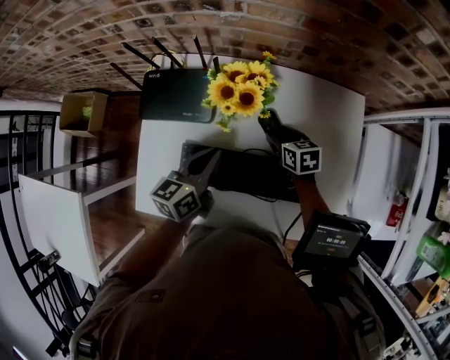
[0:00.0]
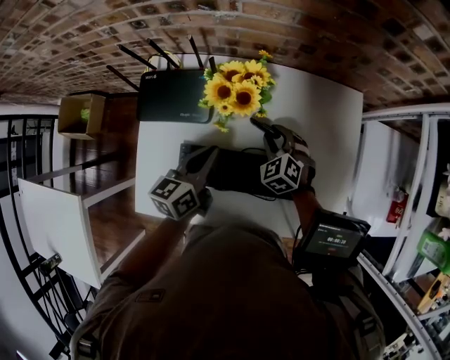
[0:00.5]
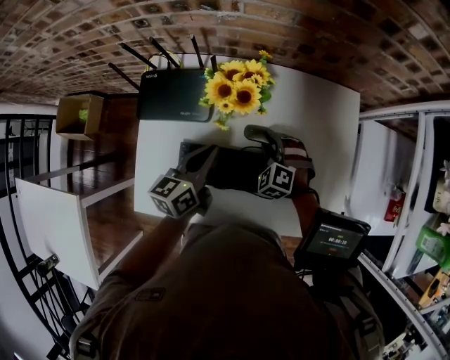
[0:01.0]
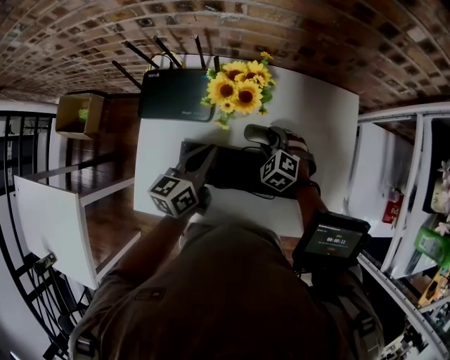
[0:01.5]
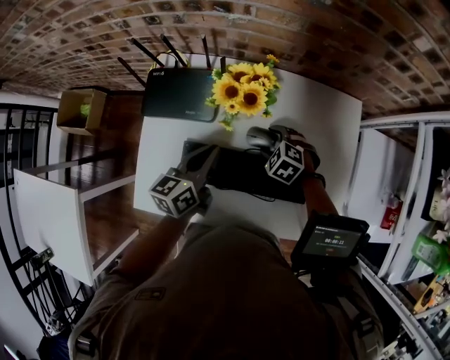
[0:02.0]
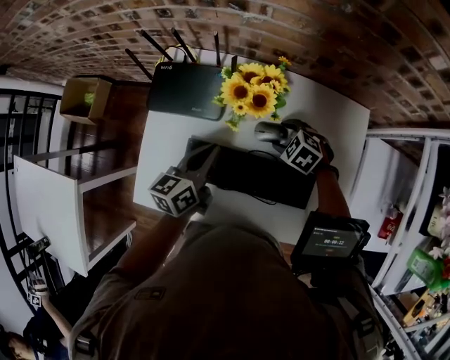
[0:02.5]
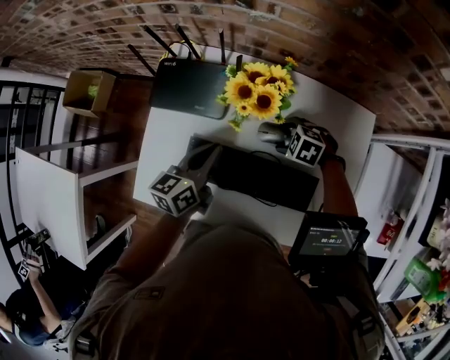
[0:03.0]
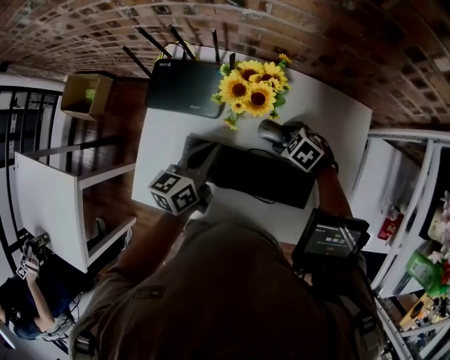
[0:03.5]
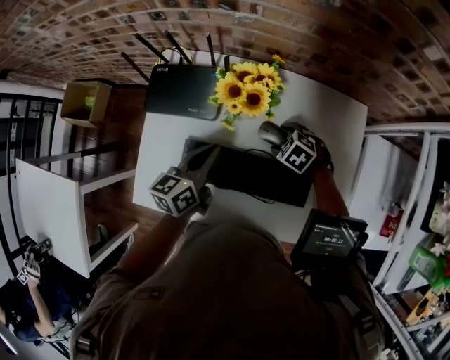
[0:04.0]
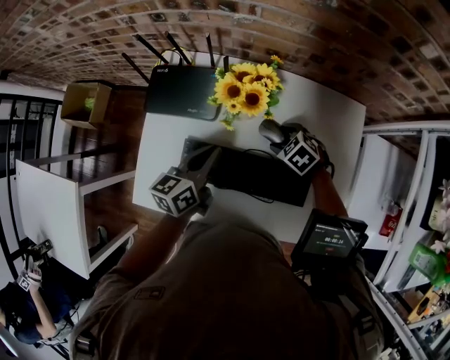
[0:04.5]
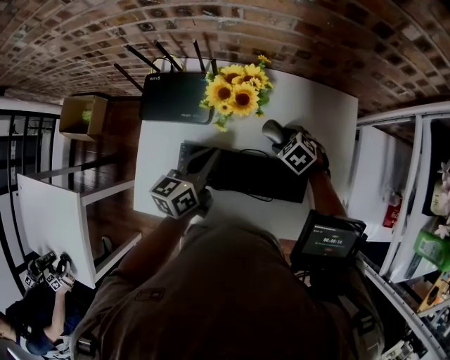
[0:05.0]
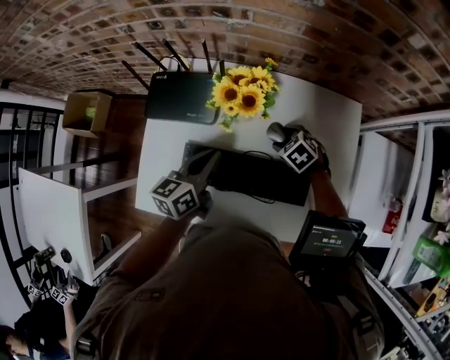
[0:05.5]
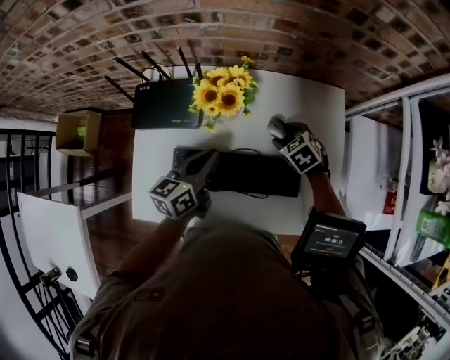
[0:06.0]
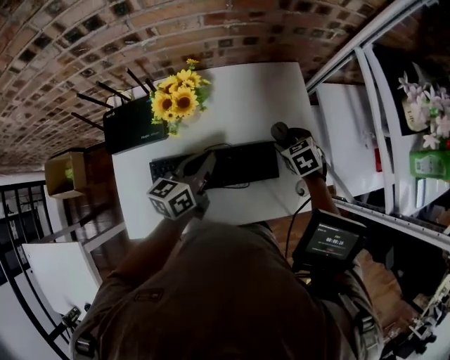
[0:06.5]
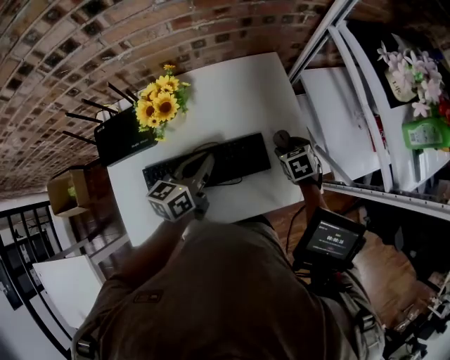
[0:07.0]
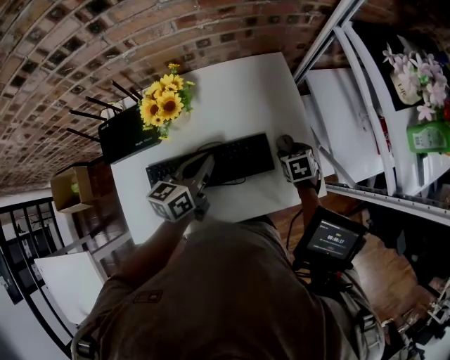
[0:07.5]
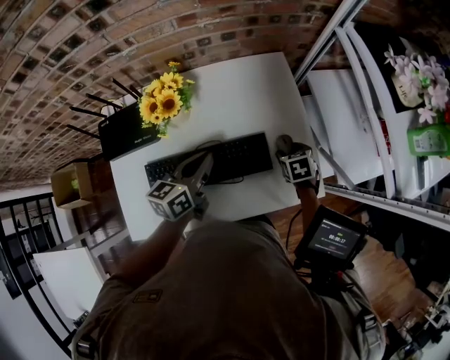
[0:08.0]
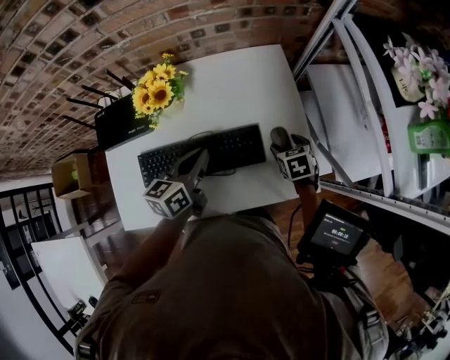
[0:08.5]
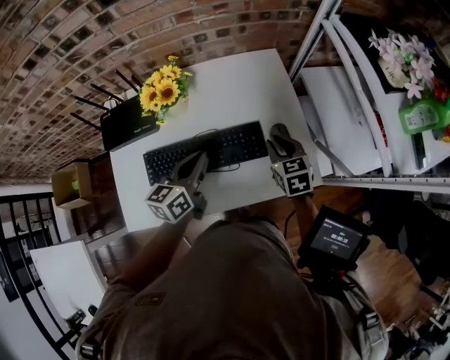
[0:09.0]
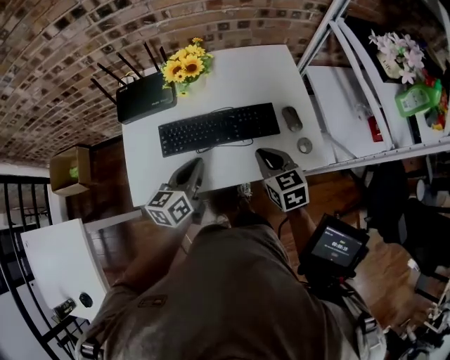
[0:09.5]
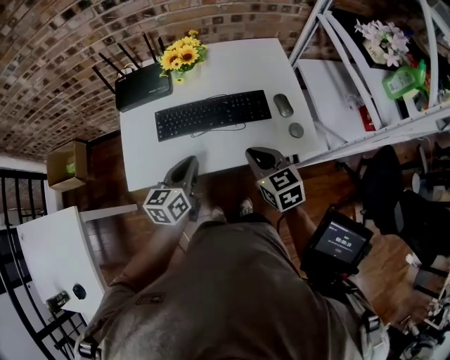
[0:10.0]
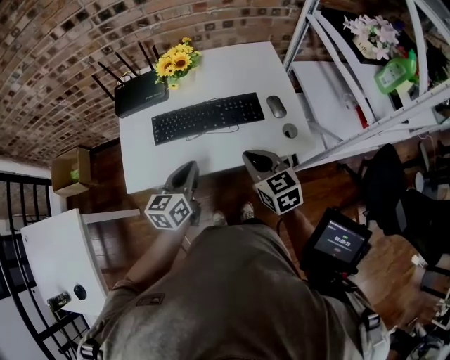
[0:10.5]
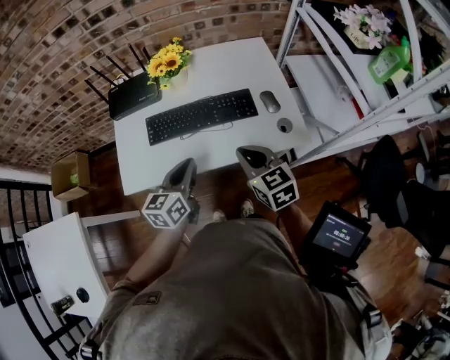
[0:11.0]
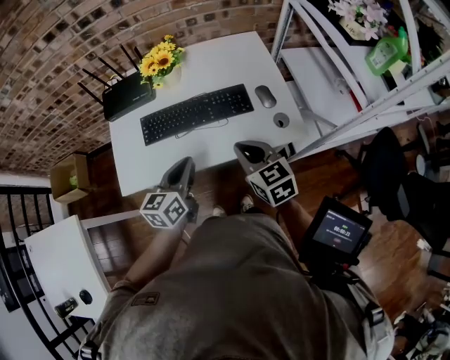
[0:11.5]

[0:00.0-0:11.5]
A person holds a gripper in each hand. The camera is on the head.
0:00.0 to 0:02.0: The right gripper changes place by roughly 5 cm, and rolls counterclockwise, seen from behind, by some 60 degrees.
0:02.0 to 0:04.0: The grippers make only small movements.
0:04.0 to 0:06.0: The right gripper heads to the right, covering some 5 cm, and turns by some 30 degrees.
0:06.0 to 0:07.5: The left gripper changes place by about 10 cm. The right gripper moves some 20 cm, and rotates approximately 40 degrees.
0:07.5 to 0:09.5: The right gripper goes approximately 25 cm backward, to the left and upward, angles its fingers upward, by roughly 30 degrees, and closes up. Meanwhile the left gripper moves backward, approximately 15 cm.
0:09.5 to 0:11.5: The grippers both shift backward by about 5 cm.

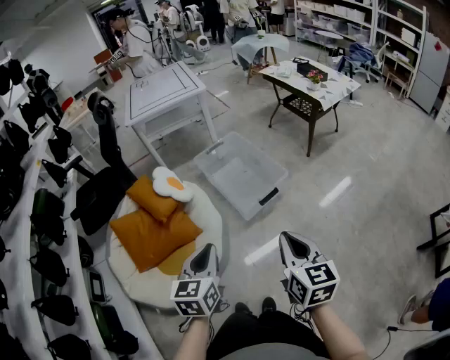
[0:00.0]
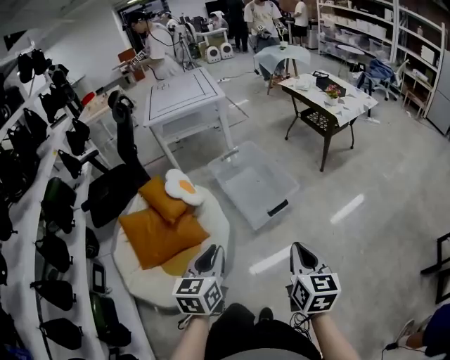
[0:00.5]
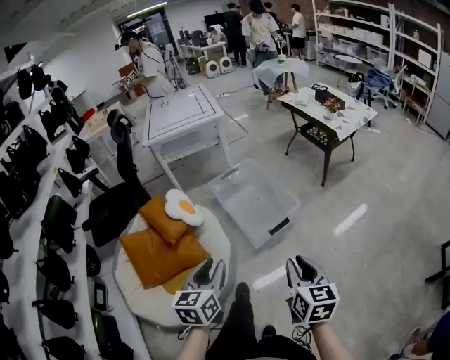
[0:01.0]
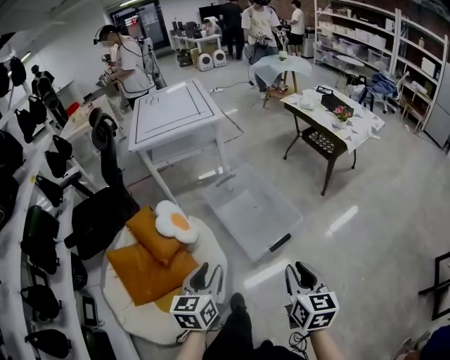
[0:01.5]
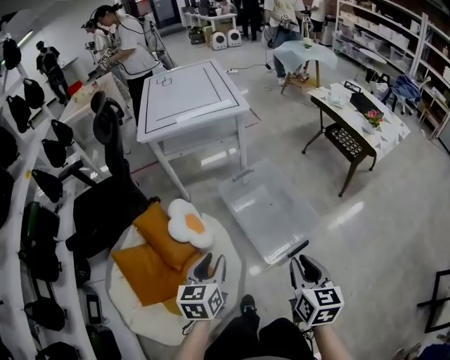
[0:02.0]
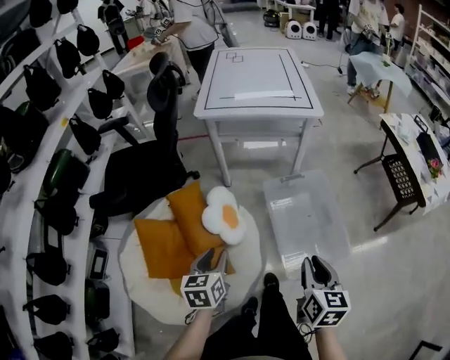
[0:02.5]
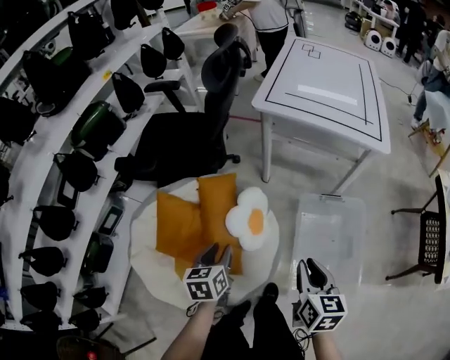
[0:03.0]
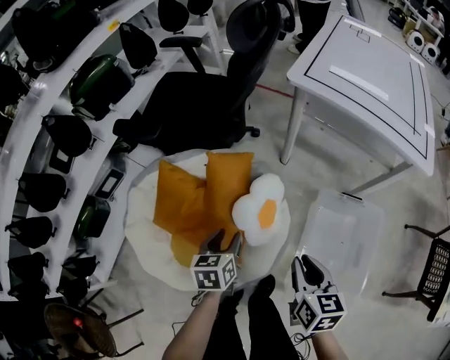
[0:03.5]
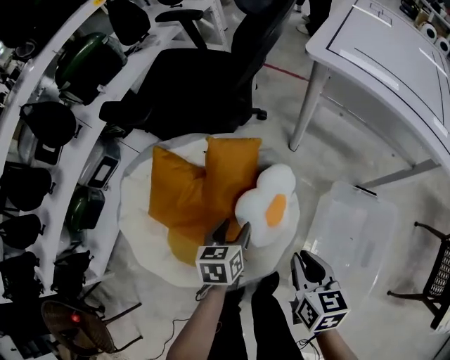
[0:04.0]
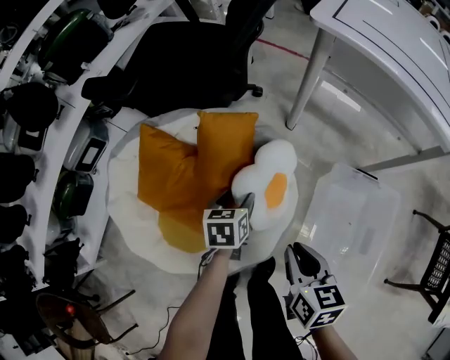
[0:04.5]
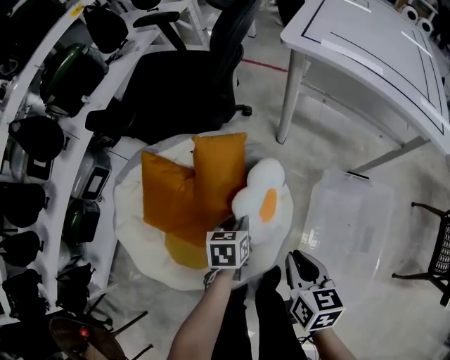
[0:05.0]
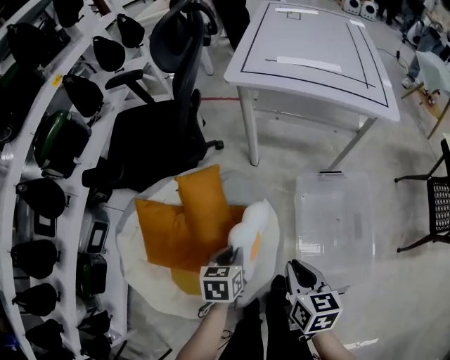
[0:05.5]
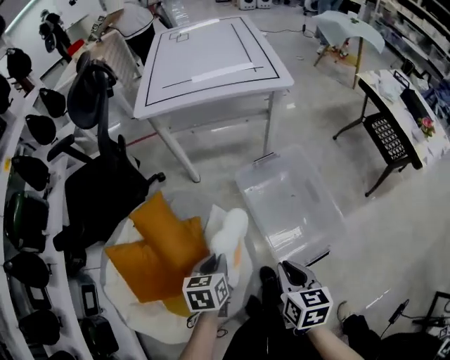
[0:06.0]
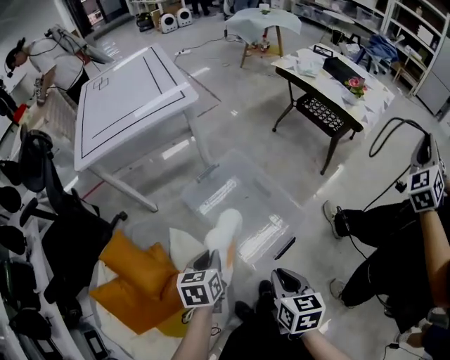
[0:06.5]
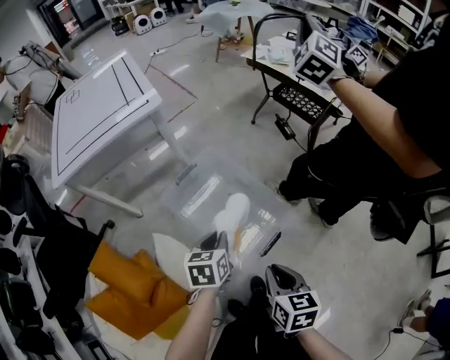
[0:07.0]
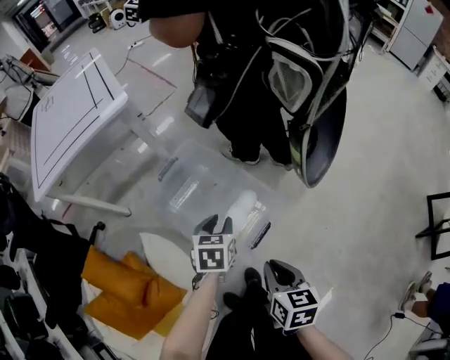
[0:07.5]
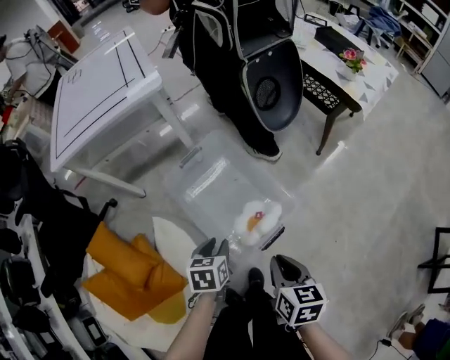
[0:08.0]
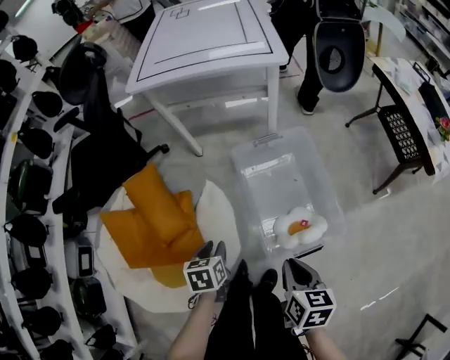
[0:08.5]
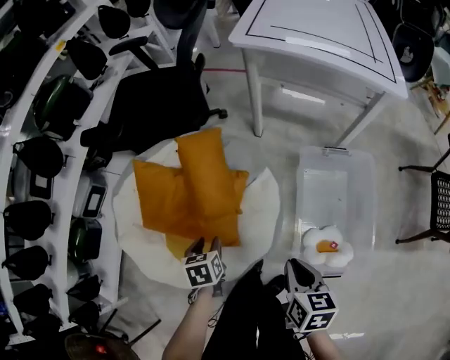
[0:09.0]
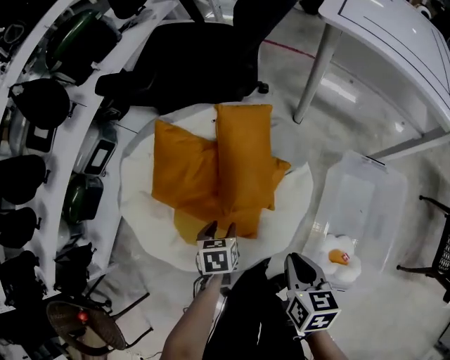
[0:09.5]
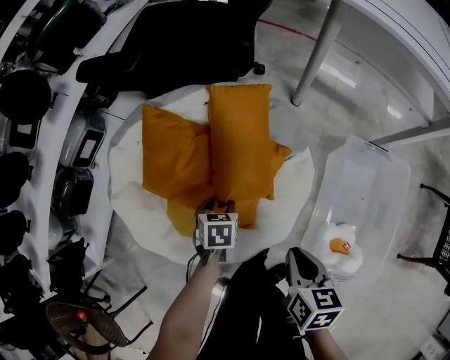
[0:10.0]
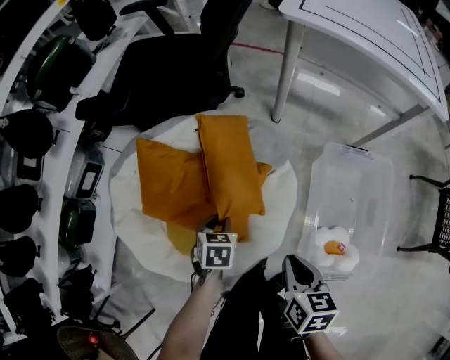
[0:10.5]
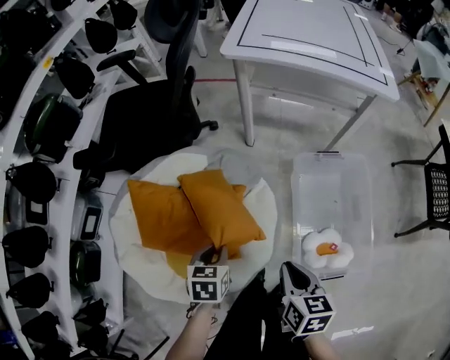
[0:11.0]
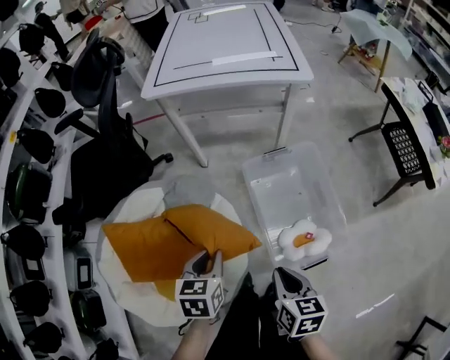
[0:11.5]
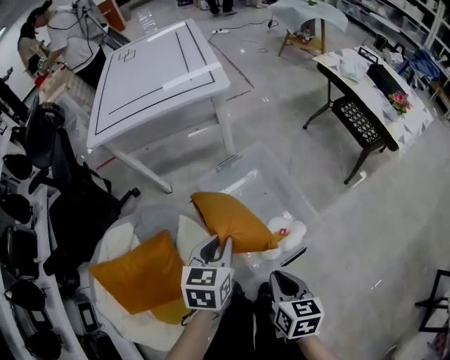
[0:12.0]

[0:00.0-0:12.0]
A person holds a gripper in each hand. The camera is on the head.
0:00.0 to 0:02.0: The two grippers go approximately 35 cm forward. The left gripper opens.
0:02.0 to 0:04.0: The left gripper ends up roughly 40 cm from where it was, and turns by roughly 50 degrees. Meanwhile the right gripper changes place by roughly 50 cm, and turns by roughly 60 degrees.
0:04.0 to 0:06.0: The right gripper moves some 25 cm, and turns by about 40 degrees. Meanwhile the left gripper shifts by about 20 cm, swivels some 40 degrees, and closes.
0:06.0 to 0:08.0: The left gripper ends up approximately 30 cm from where it was, and changes its angle by about 20 degrees; the right gripper shifts by approximately 25 cm, and turns by roughly 20 degrees.
0:08.0 to 0:10.0: The pair of grippers is taken roughly 50 cm. The left gripper turns by approximately 60 degrees, and opens up; the right gripper rotates about 60 degrees.
0:10.0 to 0:12.0: The right gripper shifts by approximately 35 cm, and rotates approximately 50 degrees. Meanwhile the left gripper moves roughly 60 cm, swivels about 60 degrees, and closes.

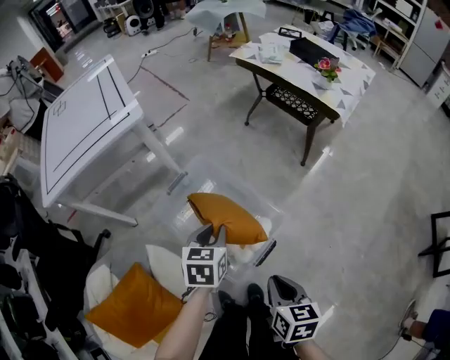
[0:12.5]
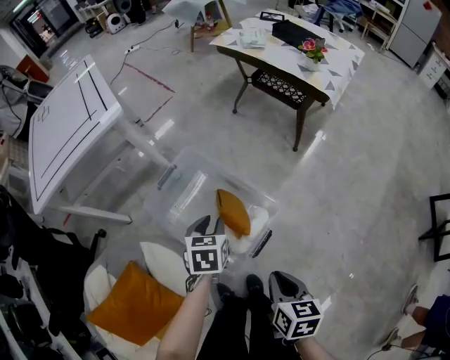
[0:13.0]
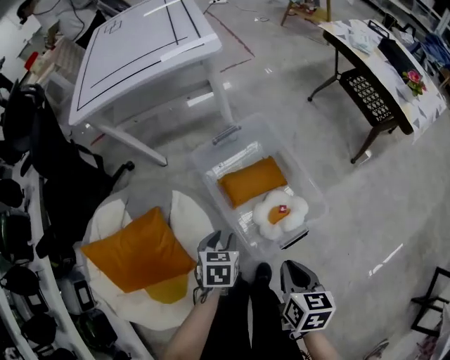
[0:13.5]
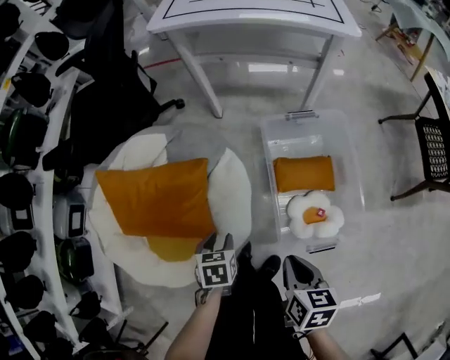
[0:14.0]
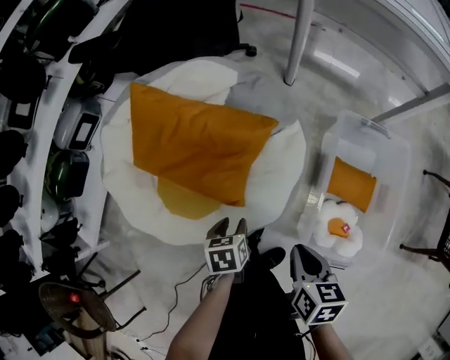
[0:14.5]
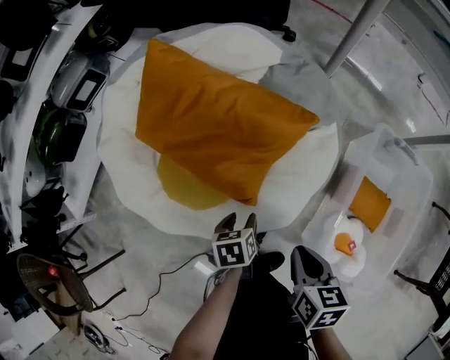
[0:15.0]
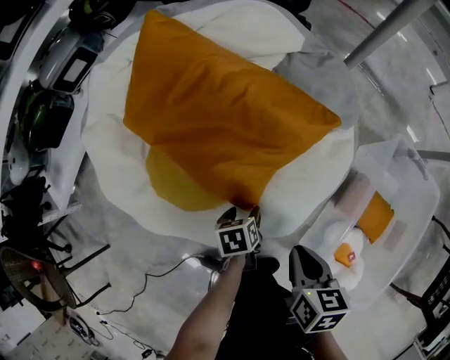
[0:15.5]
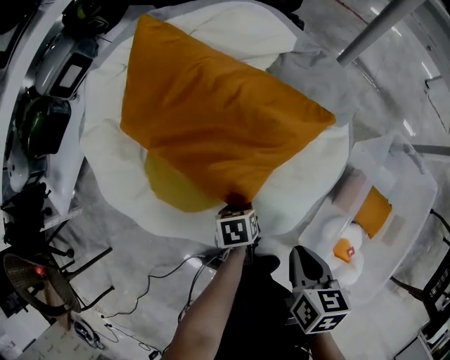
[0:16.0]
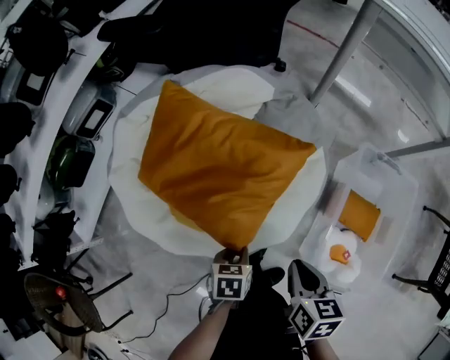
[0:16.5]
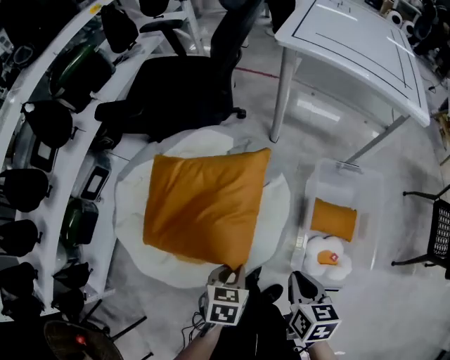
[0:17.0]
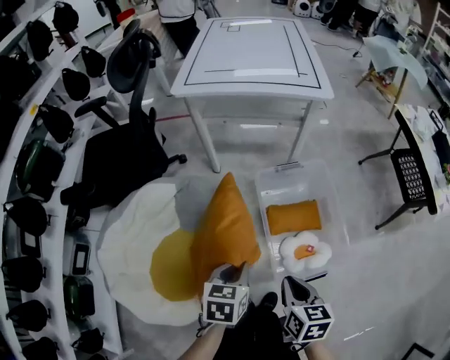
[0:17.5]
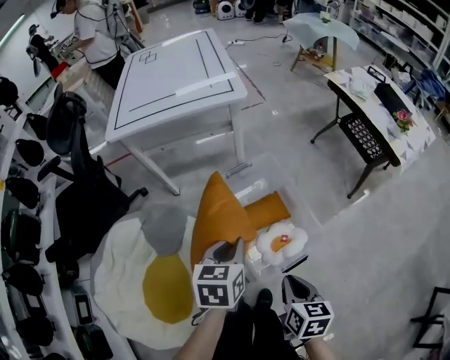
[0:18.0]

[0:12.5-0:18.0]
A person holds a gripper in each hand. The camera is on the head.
0:12.5 to 0:14.5: The right gripper ends up approximately 40 cm from where it was, and rotates roughly 60 degrees; the left gripper moves some 60 cm, rolls counterclockwise, seen from behind, by roughly 70 degrees, and opens its fingers.
0:14.5 to 0:16.0: The right gripper travels downward and to the left by approximately 15 cm, while the left gripper heads downward, covering about 20 cm, and opens and closes again.
0:16.0 to 0:18.0: The left gripper moves upward, some 60 cm, and twists approximately 60 degrees clockwise, seen from behind; the right gripper goes roughly 35 cm upward, and swivels roughly 60 degrees.
